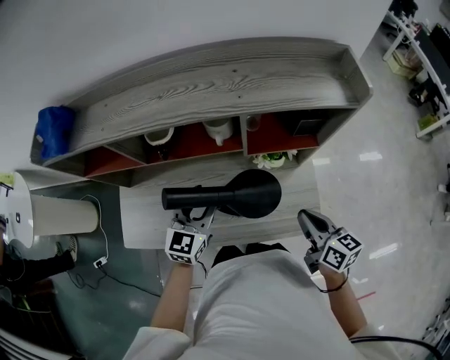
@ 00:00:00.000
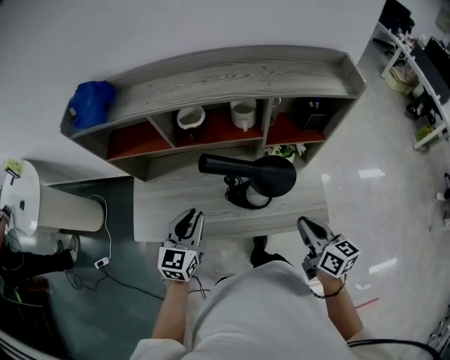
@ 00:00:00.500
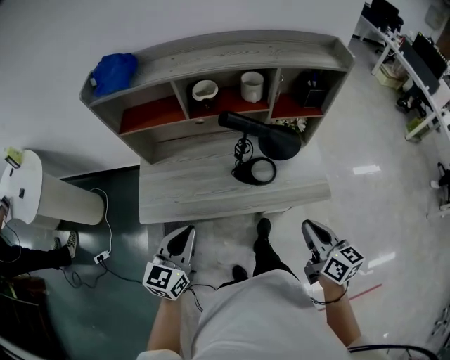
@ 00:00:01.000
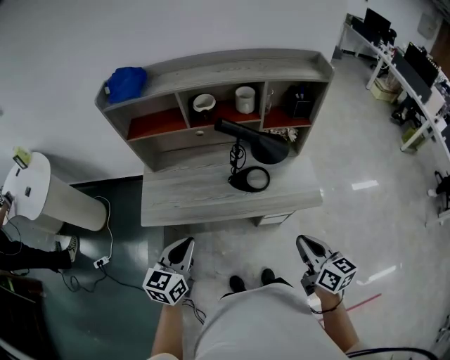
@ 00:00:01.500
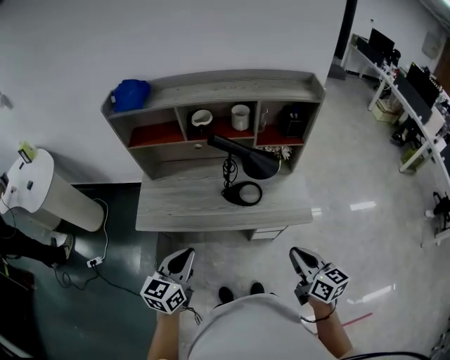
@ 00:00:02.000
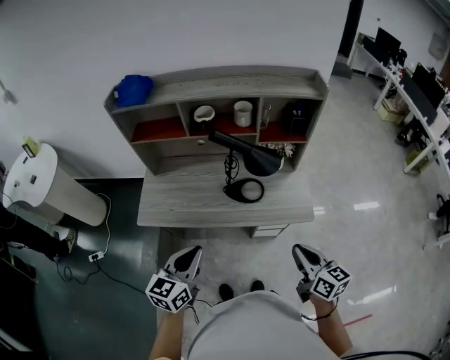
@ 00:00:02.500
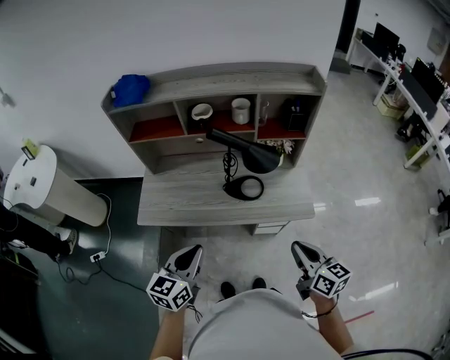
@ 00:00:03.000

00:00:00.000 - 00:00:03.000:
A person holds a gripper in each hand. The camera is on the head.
00:00:00.000 - 00:00:01.500: The left gripper travels backward and to the left by roughly 40 cm, and closes up; the right gripper heads backward, covering roughly 30 cm.
00:00:01.500 - 00:00:03.000: The left gripper shifts roughly 10 cm to the right.

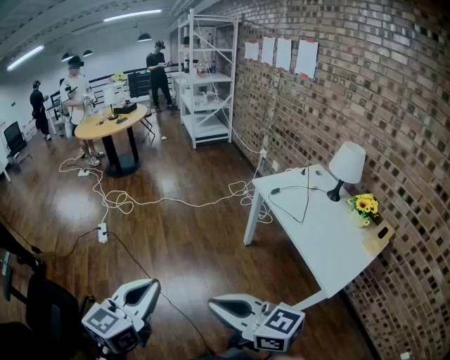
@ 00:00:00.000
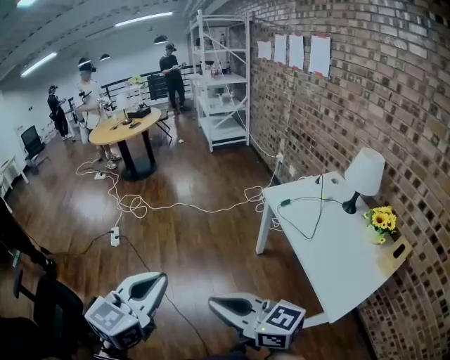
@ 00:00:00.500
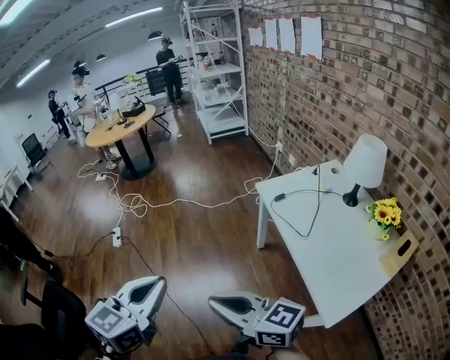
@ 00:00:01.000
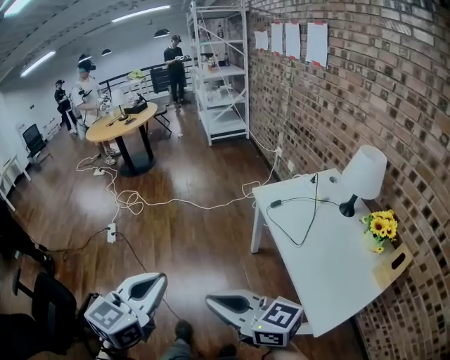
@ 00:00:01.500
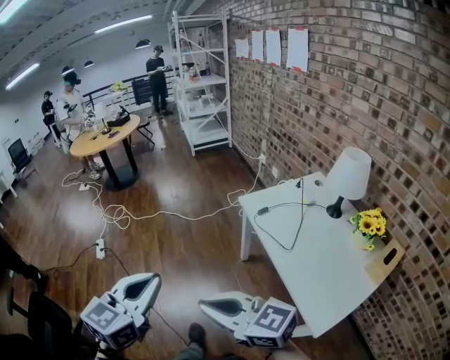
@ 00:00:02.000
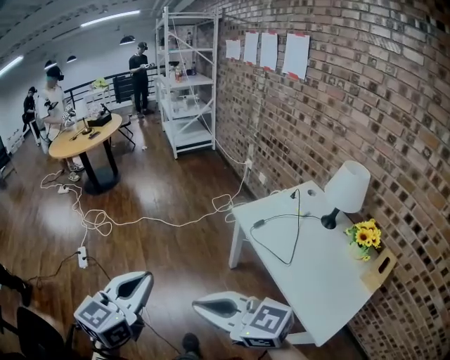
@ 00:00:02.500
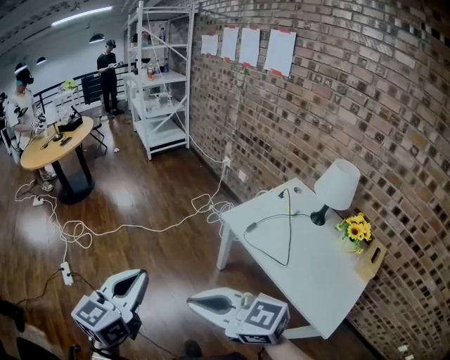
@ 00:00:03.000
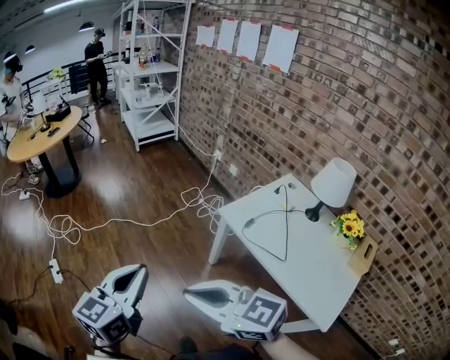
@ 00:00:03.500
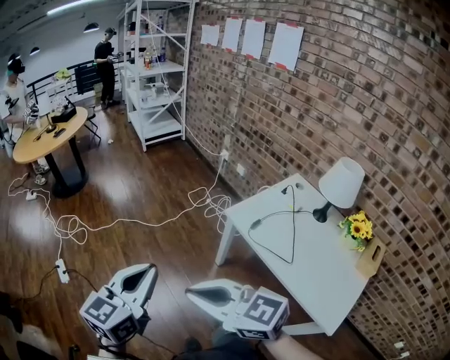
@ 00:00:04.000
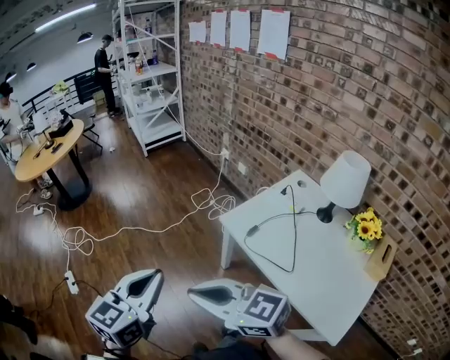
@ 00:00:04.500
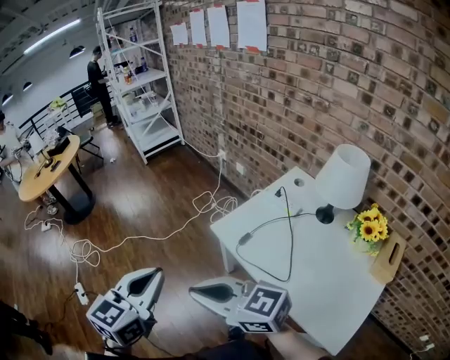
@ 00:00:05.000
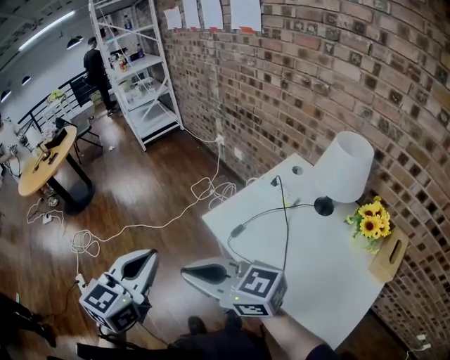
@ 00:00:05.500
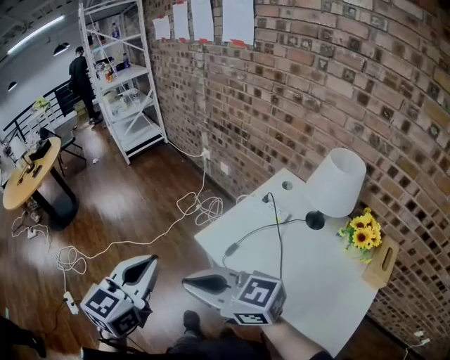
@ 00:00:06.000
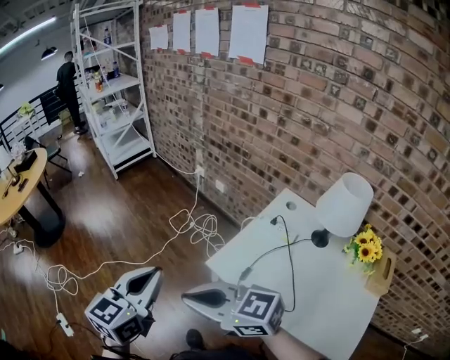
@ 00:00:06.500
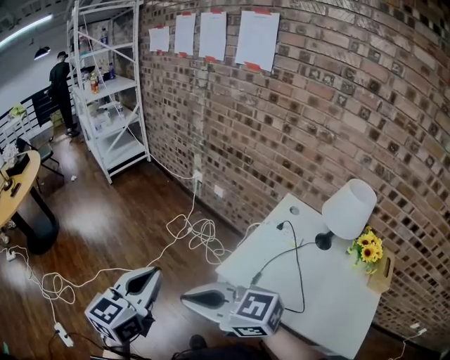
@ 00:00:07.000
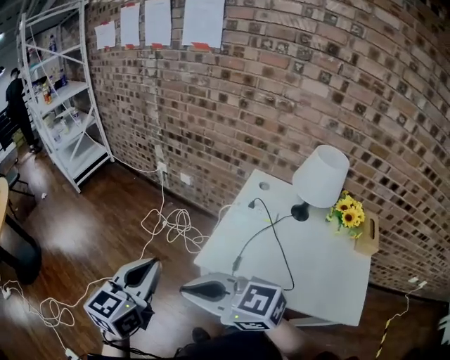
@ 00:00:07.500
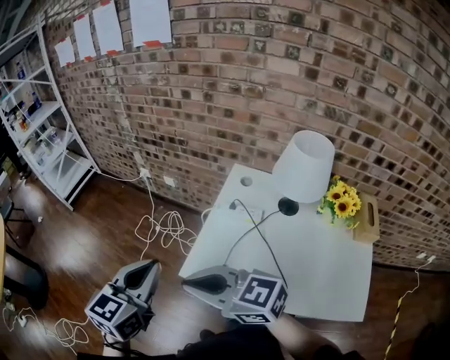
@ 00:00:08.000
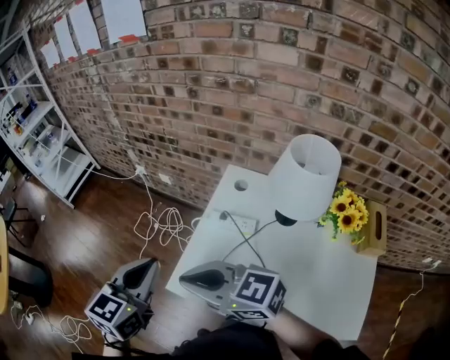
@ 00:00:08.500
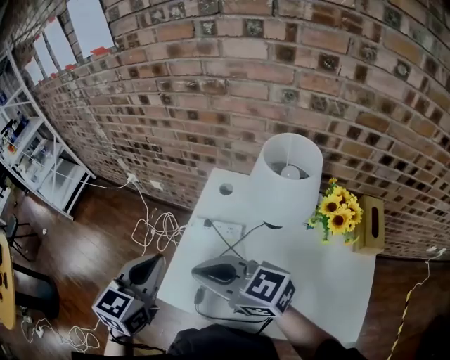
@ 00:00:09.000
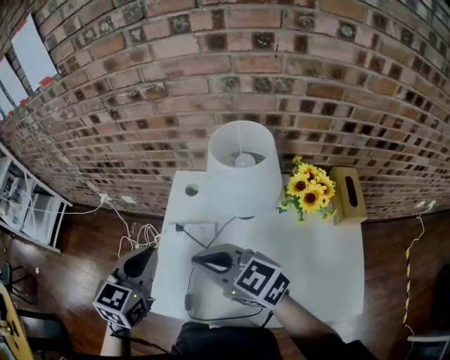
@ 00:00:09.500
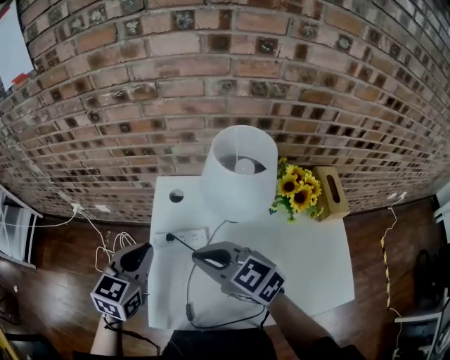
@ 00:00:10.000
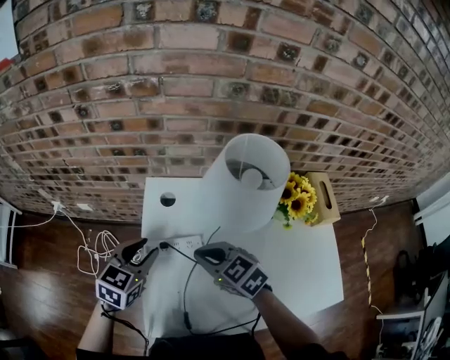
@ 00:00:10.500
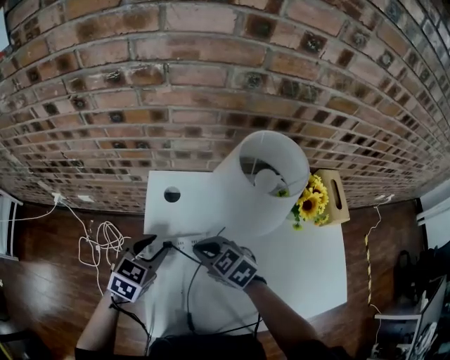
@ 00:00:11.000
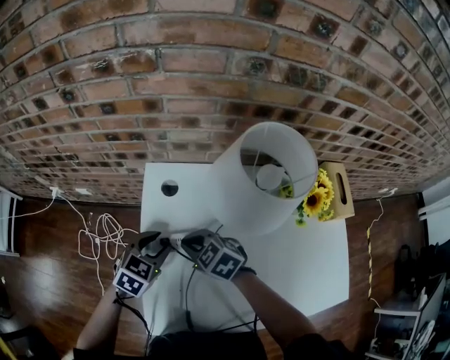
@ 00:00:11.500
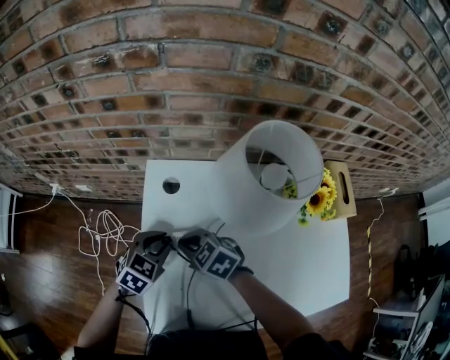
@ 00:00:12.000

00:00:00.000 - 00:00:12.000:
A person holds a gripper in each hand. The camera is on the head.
00:00:00.000 - 00:00:02.000: The grippers both shift to the right and forward by some 20 cm.
00:00:02.000 - 00:00:04.000: The grippers both shift forward by some 25 cm.
00:00:04.000 - 00:00:06.000: The grippers both shift to the right and forward by some 25 cm.
00:00:06.000 - 00:00:08.000: The left gripper shifts by approximately 20 cm, and changes its angle by approximately 30 degrees. The right gripper moves some 15 cm, and turns by roughly 20 degrees.
00:00:08.000 - 00:00:10.000: The right gripper changes place by approximately 30 cm, and changes its angle by approximately 30 degrees. The left gripper moves roughly 30 cm, and swivels some 30 degrees.
00:00:10.000 - 00:00:12.000: The right gripper is displaced downward and forward by approximately 20 cm, and turns by approximately 20 degrees. Meanwhile the left gripper goes roughly 20 cm downward, and changes its angle by some 30 degrees.

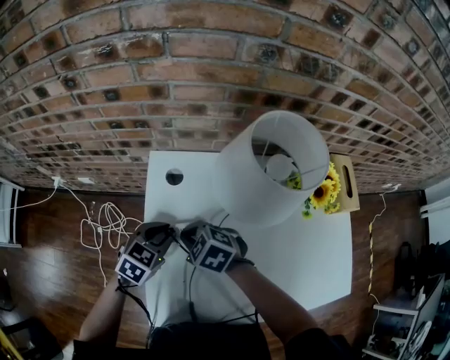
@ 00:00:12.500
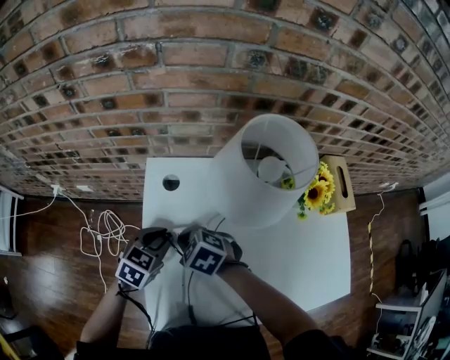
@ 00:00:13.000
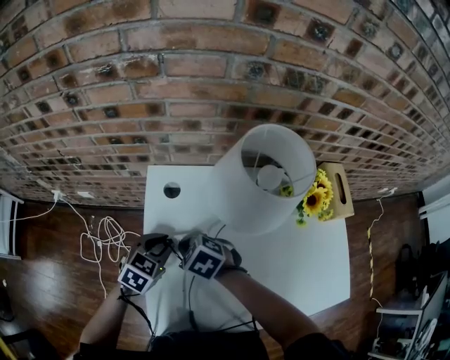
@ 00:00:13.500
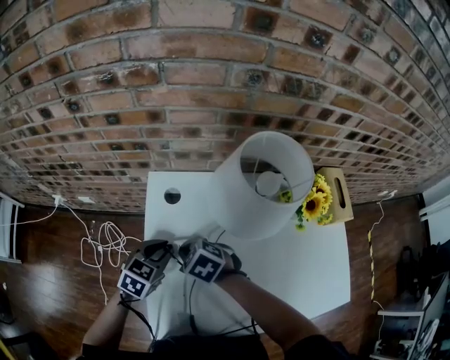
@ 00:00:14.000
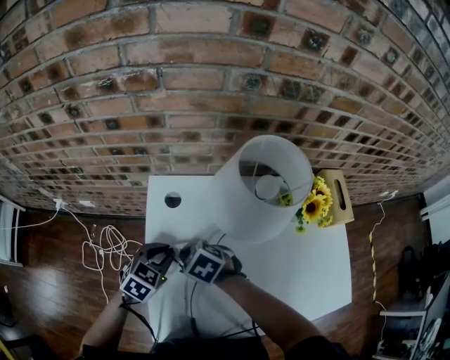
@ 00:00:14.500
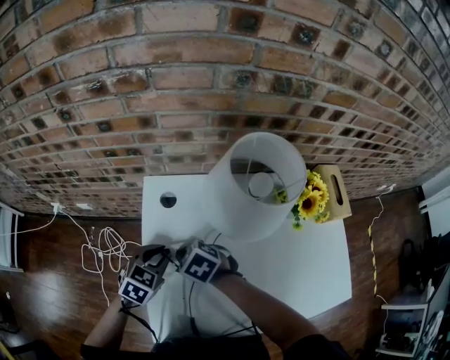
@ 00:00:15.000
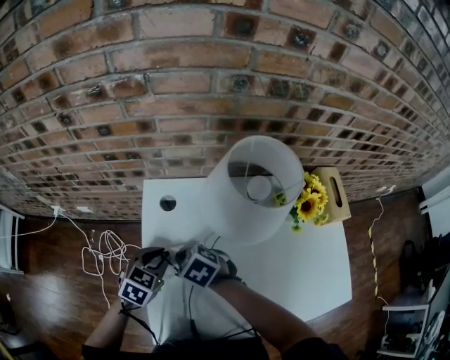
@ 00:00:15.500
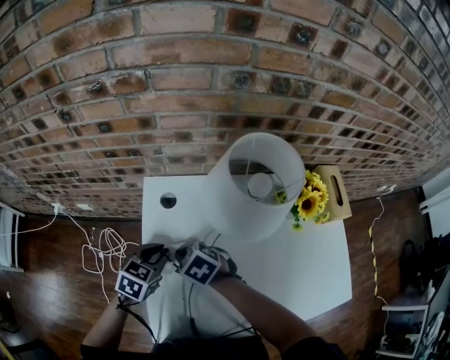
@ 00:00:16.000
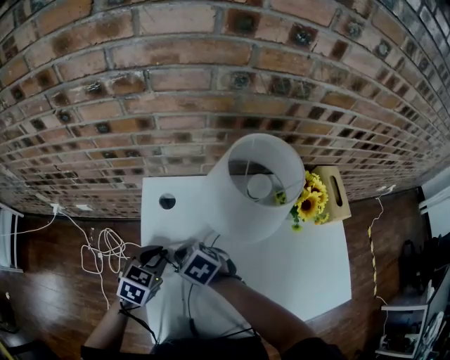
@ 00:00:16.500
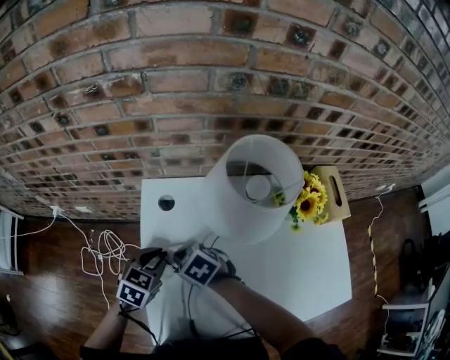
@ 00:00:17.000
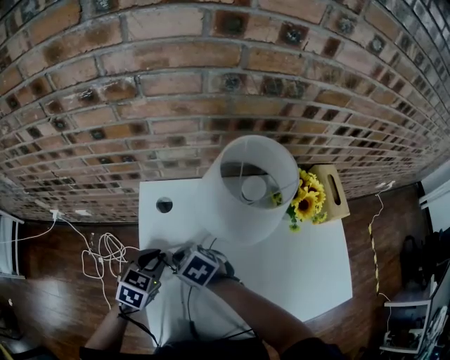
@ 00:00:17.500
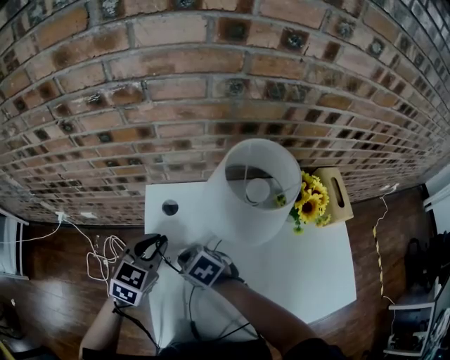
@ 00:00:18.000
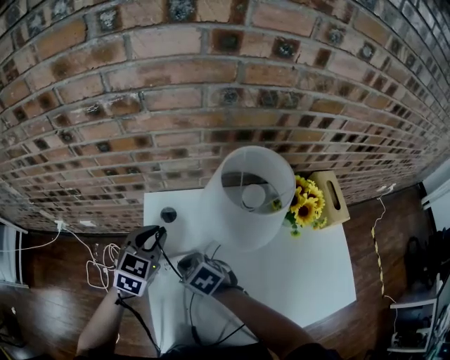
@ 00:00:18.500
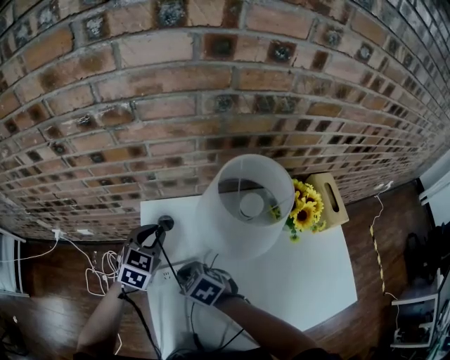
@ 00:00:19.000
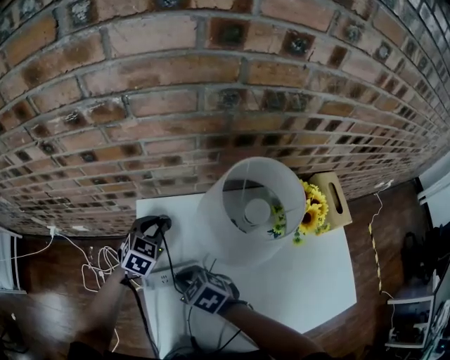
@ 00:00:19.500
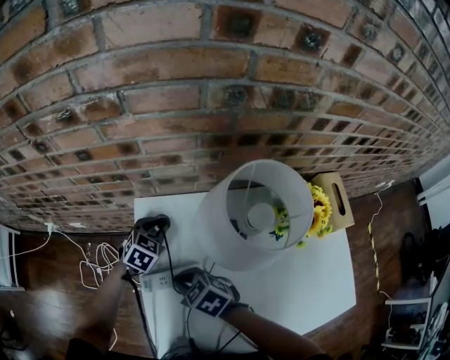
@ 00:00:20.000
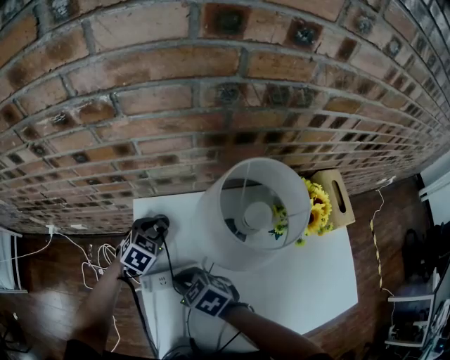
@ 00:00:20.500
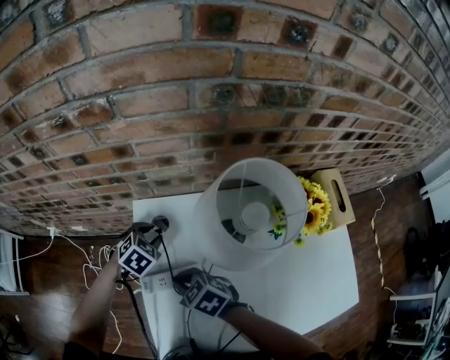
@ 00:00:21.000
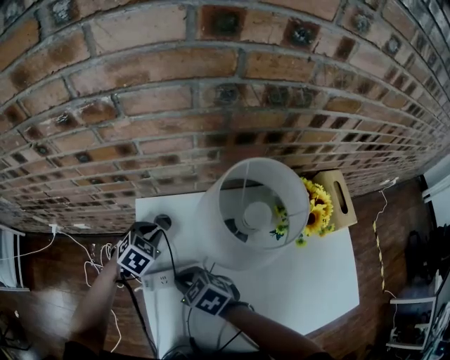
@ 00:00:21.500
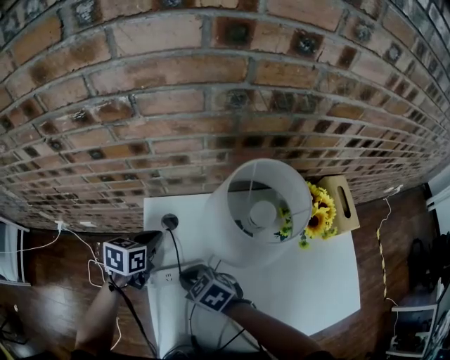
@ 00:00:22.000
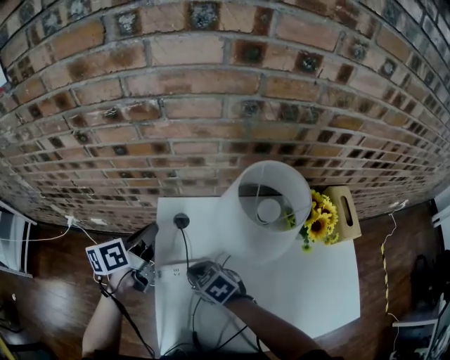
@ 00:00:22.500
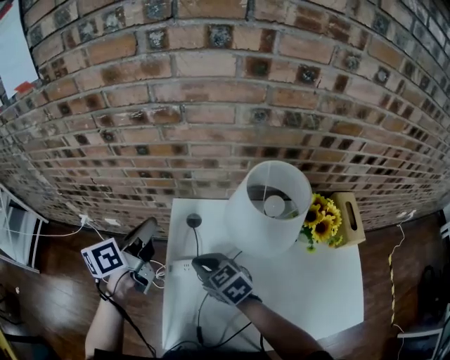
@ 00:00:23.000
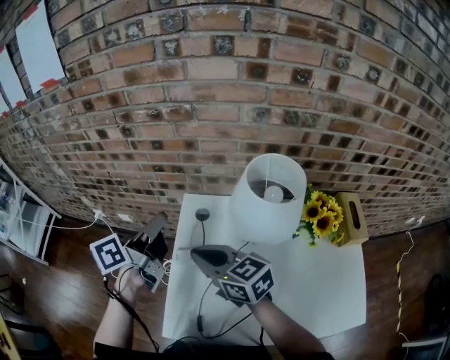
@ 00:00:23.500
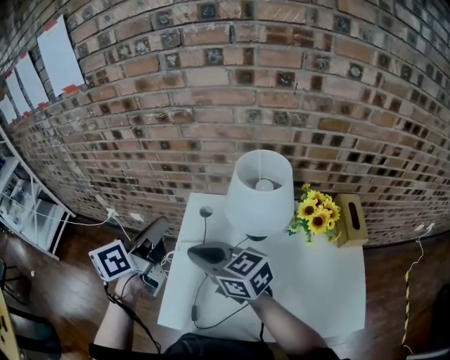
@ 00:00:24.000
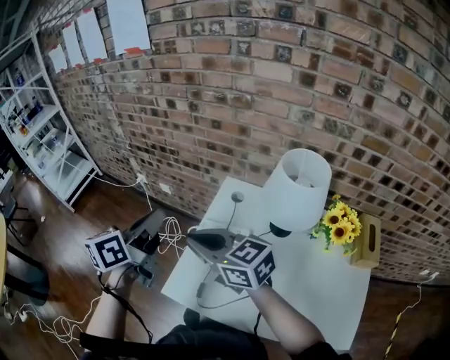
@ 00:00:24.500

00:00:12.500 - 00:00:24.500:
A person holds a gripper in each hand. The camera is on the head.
00:00:12.500 - 00:00:16.500: The grippers stay close to where they were, moving slightly.
00:00:16.500 - 00:00:18.500: The left gripper heads upward and forward, covering roughly 10 cm.
00:00:18.500 - 00:00:20.500: The left gripper shifts about 15 cm downward and forward, and turns by roughly 20 degrees.
00:00:20.500 - 00:00:22.500: The left gripper goes roughly 15 cm upward and to the left, rotates around the line of its fingers by approximately 60 degrees, counterclockwise from behind, and closes.
00:00:22.500 - 00:00:24.500: The left gripper shifts approximately 30 cm backward, upward and to the left, and changes its angle by some 30 degrees, while the right gripper is displaced upward and backward by some 30 cm, and points its fingers roughly 40 degrees further upward.
